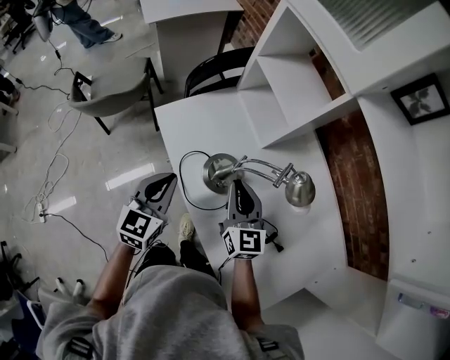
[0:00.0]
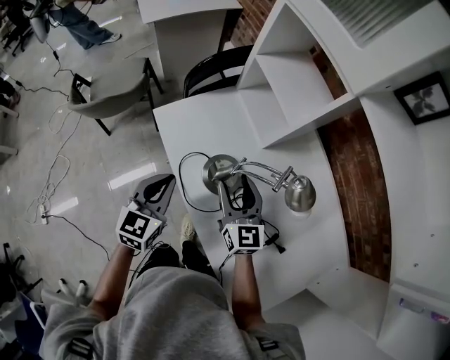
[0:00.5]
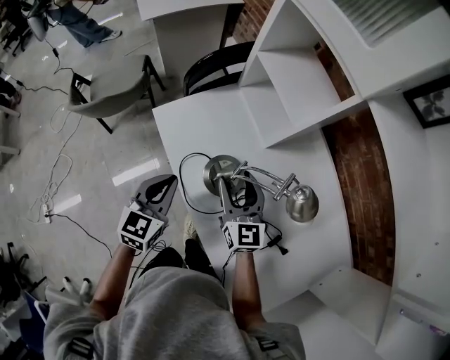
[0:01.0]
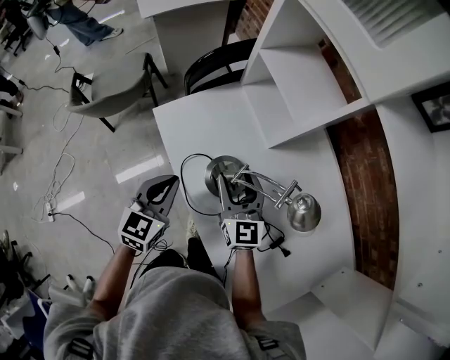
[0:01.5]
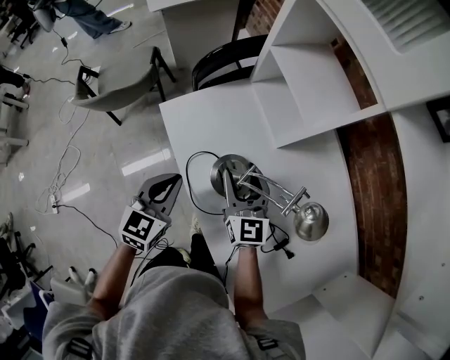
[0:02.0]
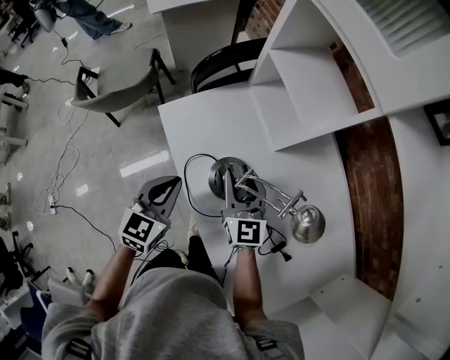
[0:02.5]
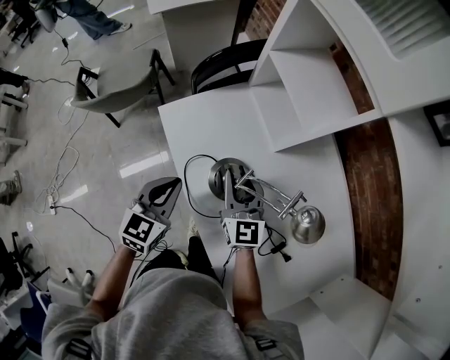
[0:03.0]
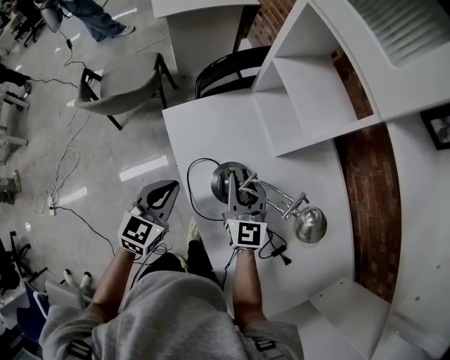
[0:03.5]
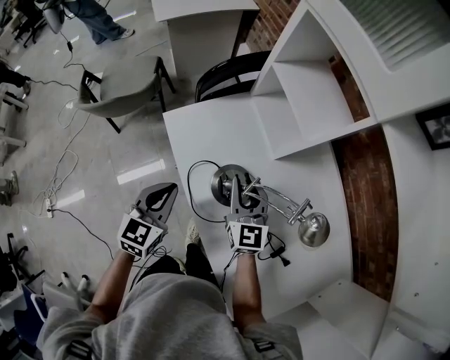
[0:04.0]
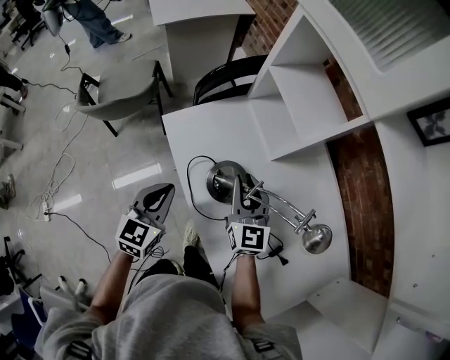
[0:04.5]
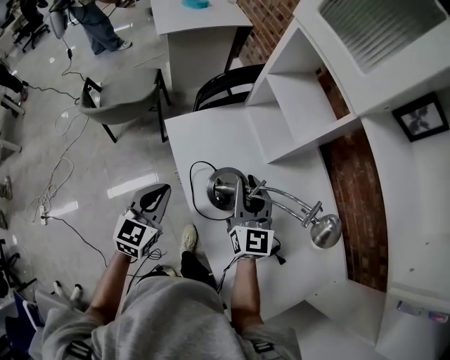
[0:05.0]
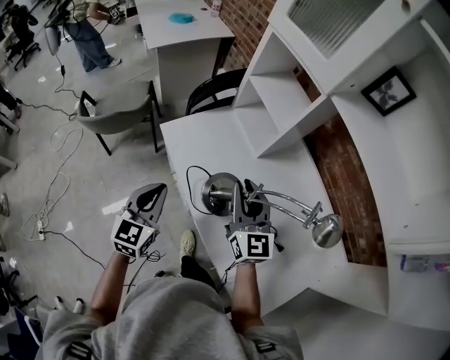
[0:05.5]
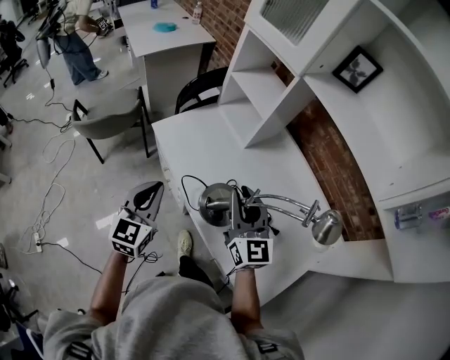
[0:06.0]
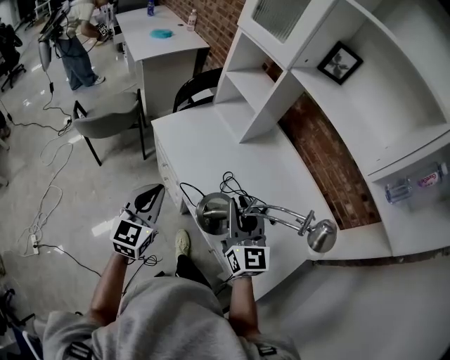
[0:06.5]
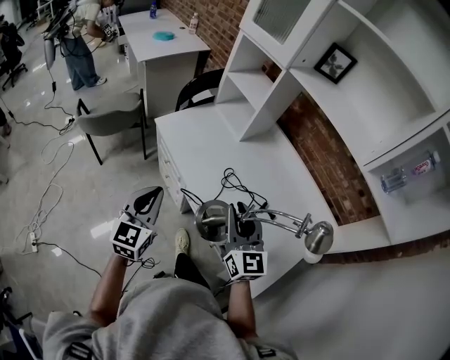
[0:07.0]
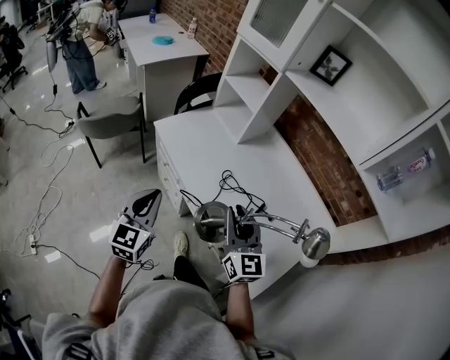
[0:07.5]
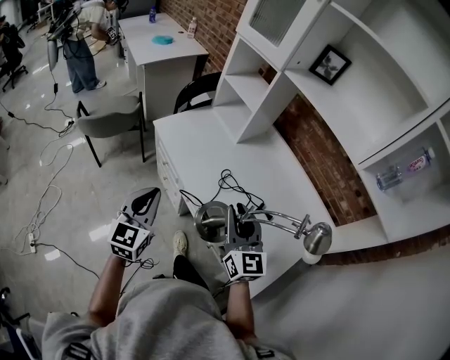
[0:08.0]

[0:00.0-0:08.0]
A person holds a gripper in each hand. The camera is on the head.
0:00.0 to 0:02.0: The right gripper is displaced forward by some 5 cm, and opens its fingers.
0:02.0 to 0:04.0: The right gripper closes its fingers.
0:04.0 to 0:06.0: The two grippers go roughly 20 cm backward and upward.
0:06.0 to 0:08.0: The two grippers go approximately 15 cm backward.

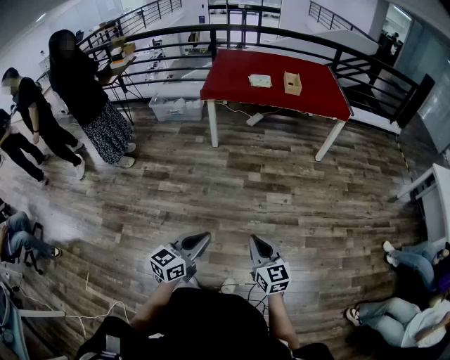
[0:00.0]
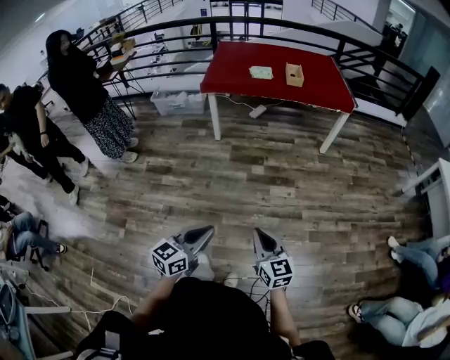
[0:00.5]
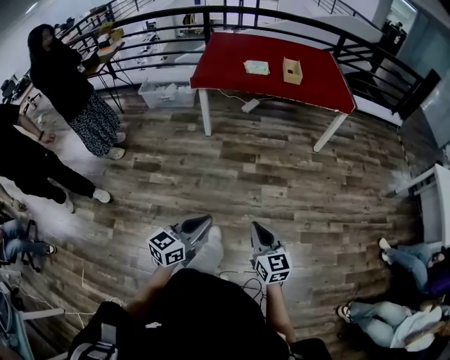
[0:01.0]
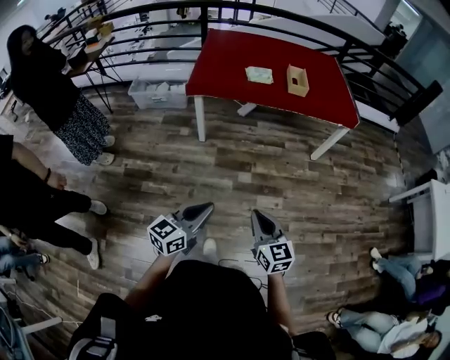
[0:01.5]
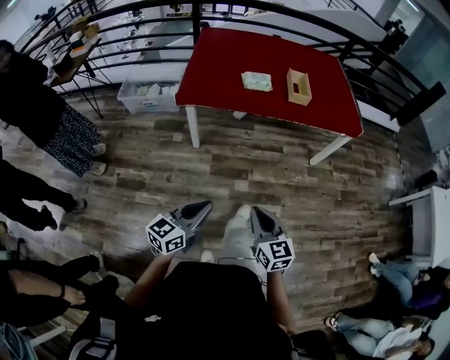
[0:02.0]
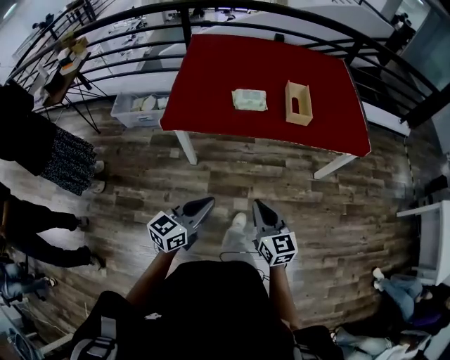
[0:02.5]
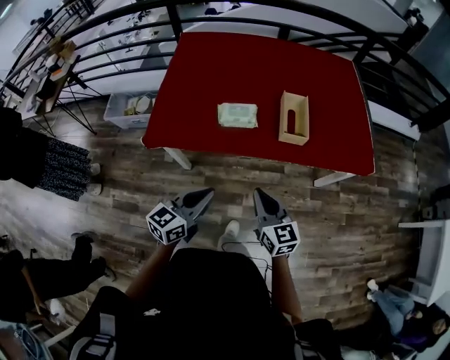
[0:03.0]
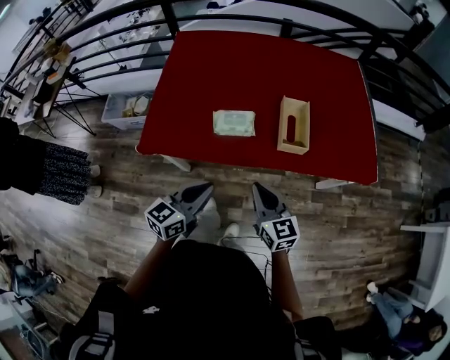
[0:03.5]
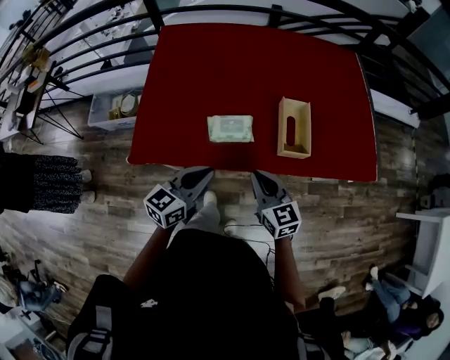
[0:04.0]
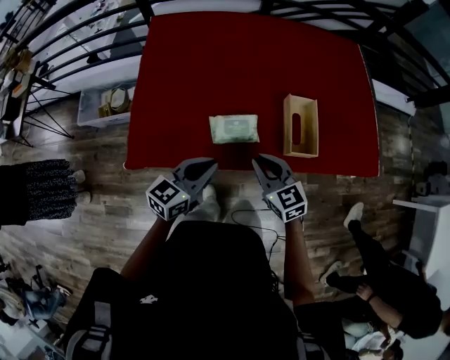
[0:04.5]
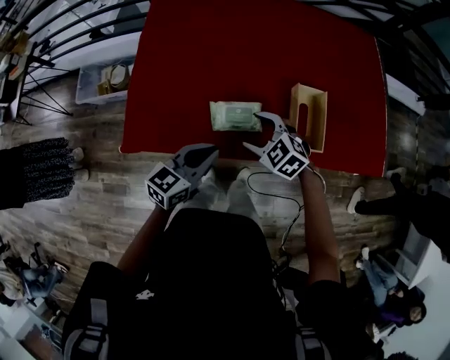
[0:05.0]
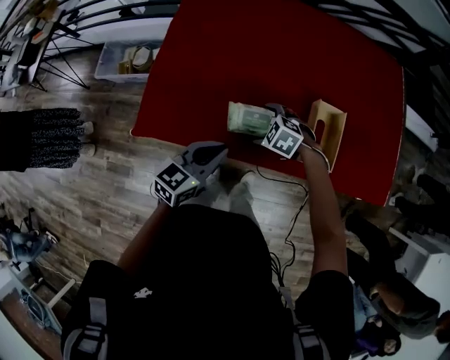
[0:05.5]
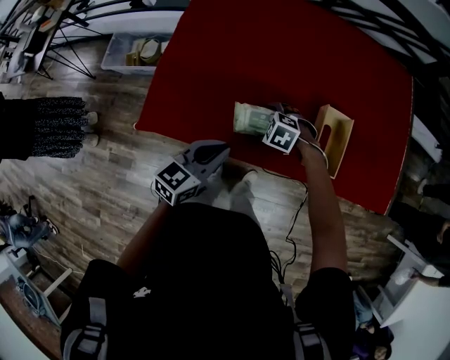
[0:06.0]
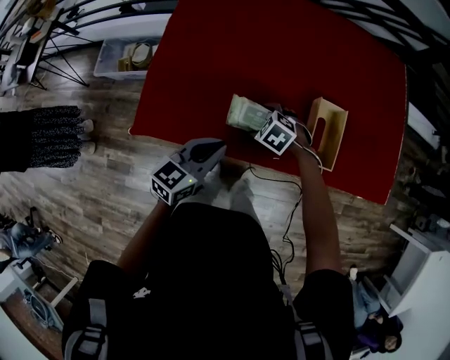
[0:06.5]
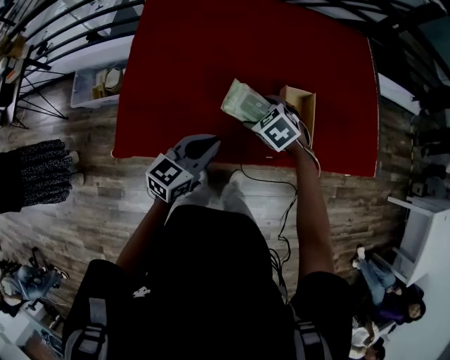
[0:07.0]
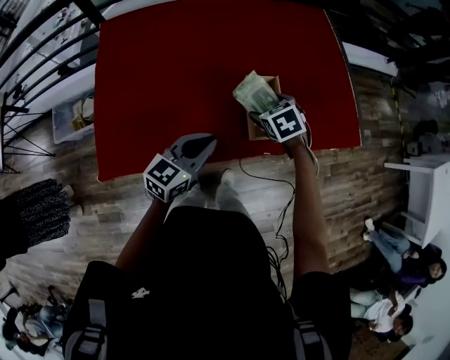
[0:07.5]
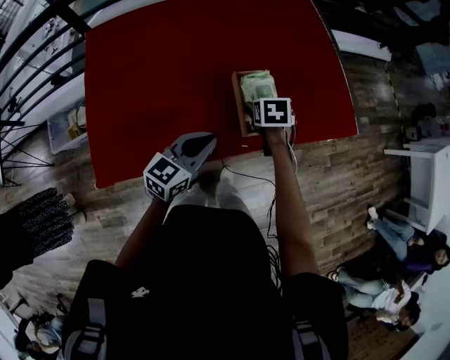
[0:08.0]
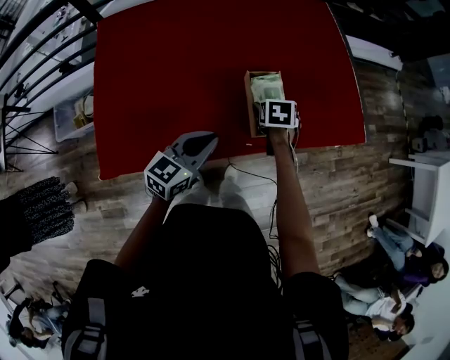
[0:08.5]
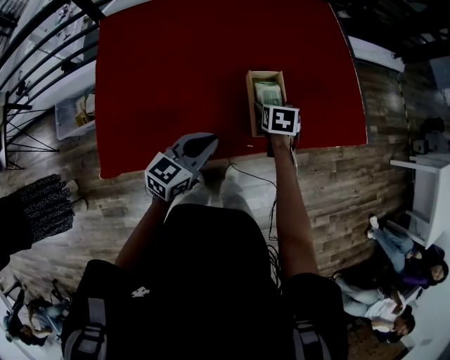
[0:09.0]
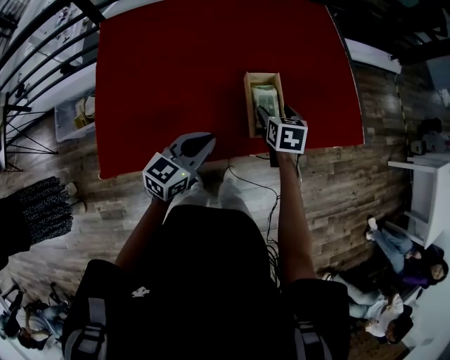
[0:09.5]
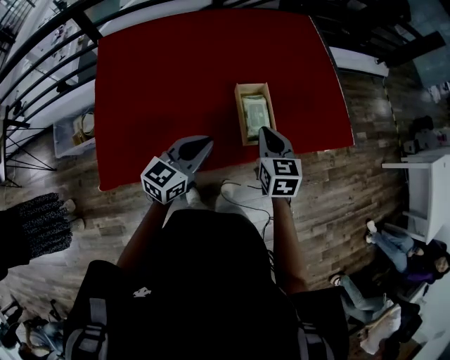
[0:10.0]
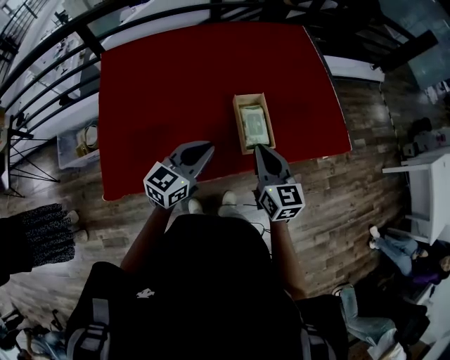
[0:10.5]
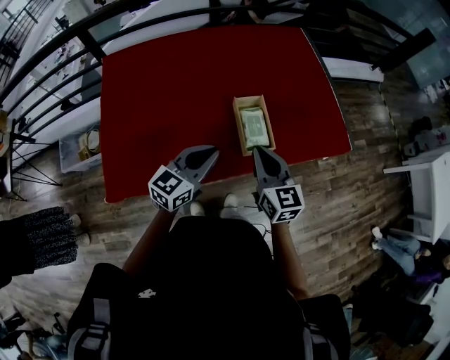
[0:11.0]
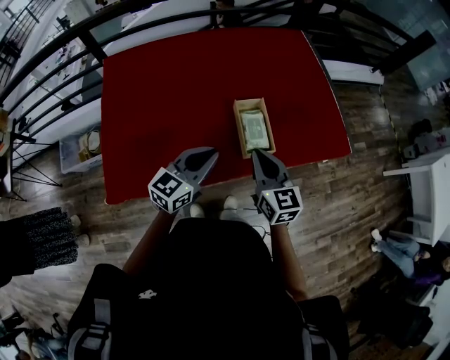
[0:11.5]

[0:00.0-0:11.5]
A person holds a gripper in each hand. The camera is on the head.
0:00.0 to 0:02.0: The pair of grippers is taken forward, roughly 50 cm.
0:02.0 to 0:04.0: Both grippers are carried forward, approximately 60 cm.
0:04.0 to 0:06.0: The left gripper ends up some 10 cm from where it was. Meanwhile the right gripper moves some 25 cm, tips its fingers downward by approximately 50 degrees, and opens up.
0:06.0 to 0:07.5: The right gripper moves some 25 cm, and rolls clockwise, seen from behind, by about 60 degrees; the left gripper shifts by some 15 cm, and rotates roughly 20 degrees.
0:07.5 to 0:09.5: The right gripper turns by roughly 30 degrees.
0:09.5 to 0:11.5: The left gripper moves upward, roughly 5 cm, while the right gripper moves upward and backward, some 20 cm, points its fingers approximately 30 degrees further upward, and closes its fingers.

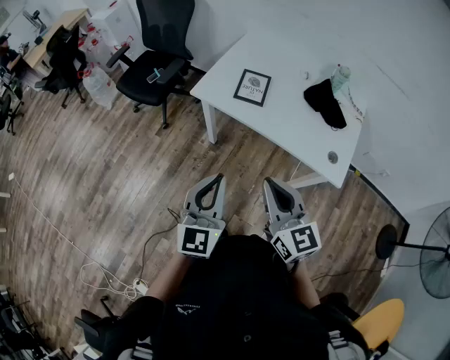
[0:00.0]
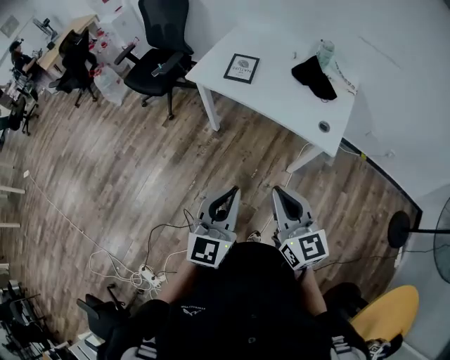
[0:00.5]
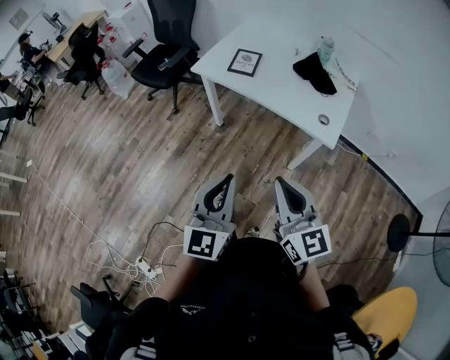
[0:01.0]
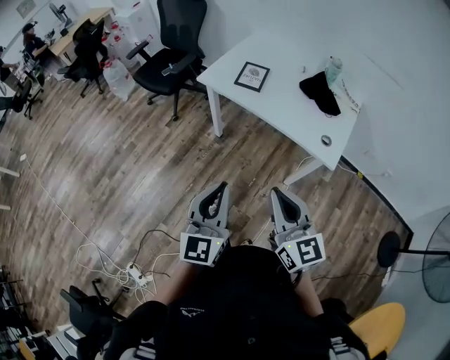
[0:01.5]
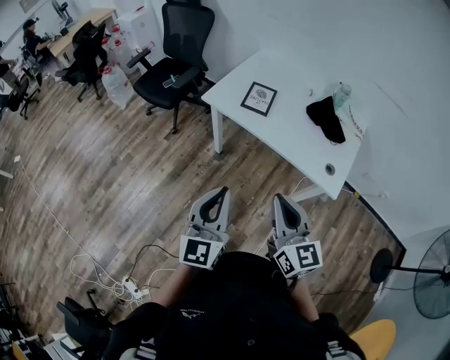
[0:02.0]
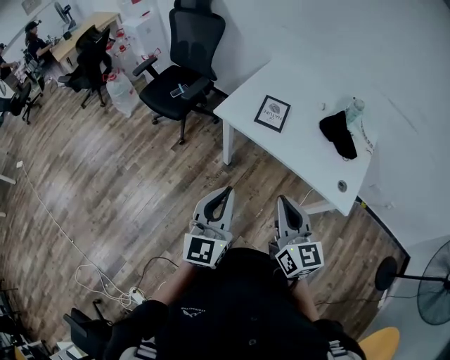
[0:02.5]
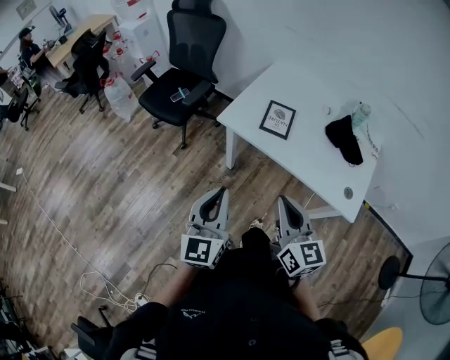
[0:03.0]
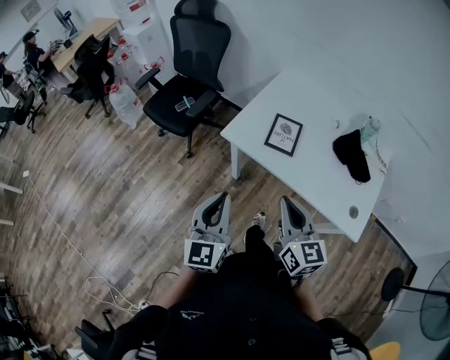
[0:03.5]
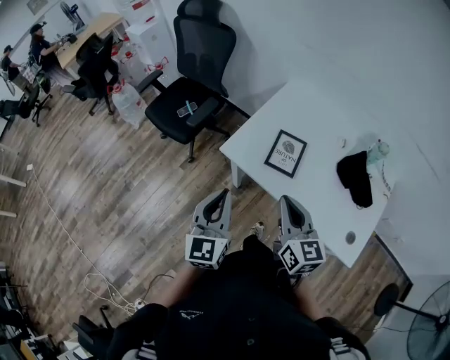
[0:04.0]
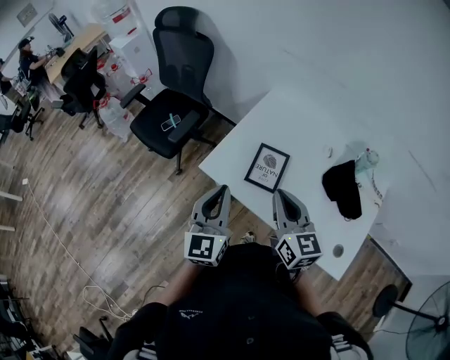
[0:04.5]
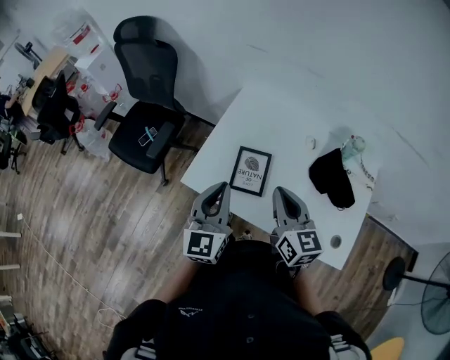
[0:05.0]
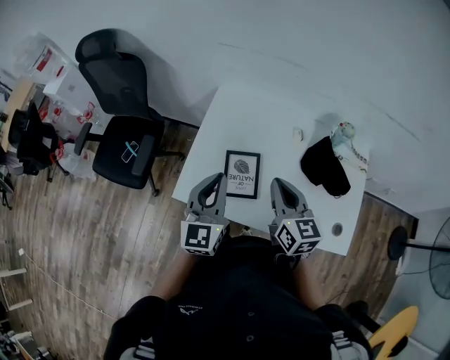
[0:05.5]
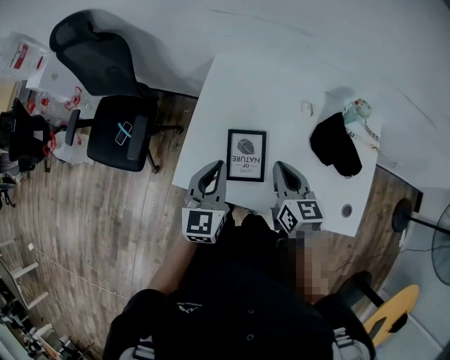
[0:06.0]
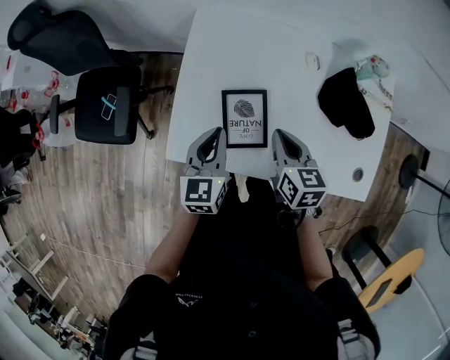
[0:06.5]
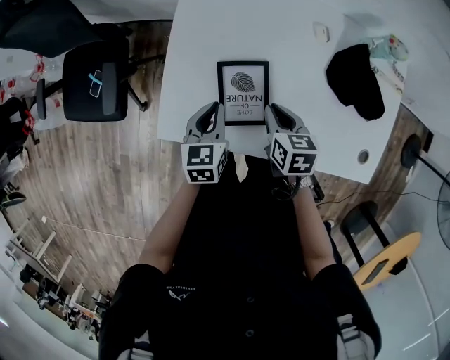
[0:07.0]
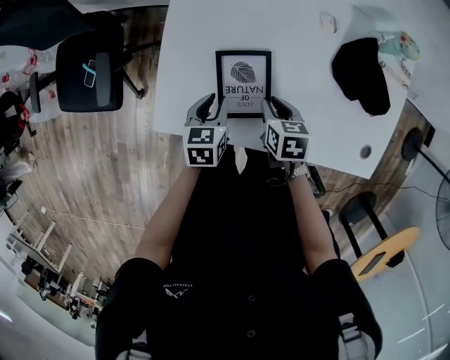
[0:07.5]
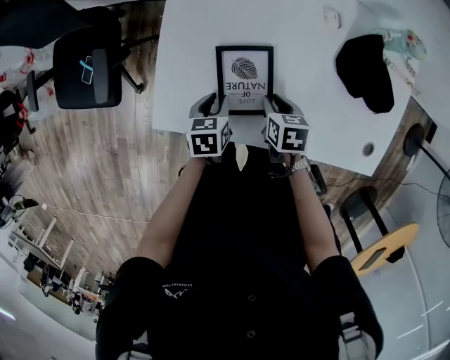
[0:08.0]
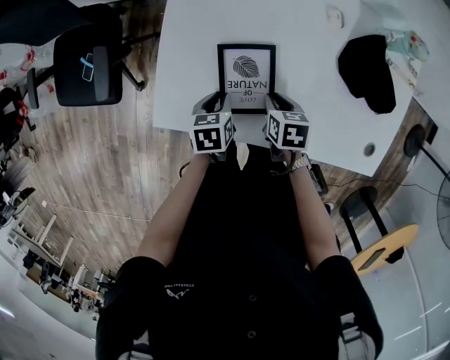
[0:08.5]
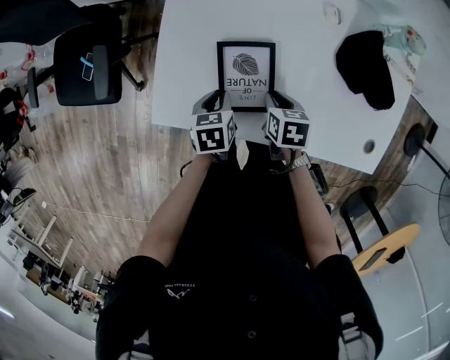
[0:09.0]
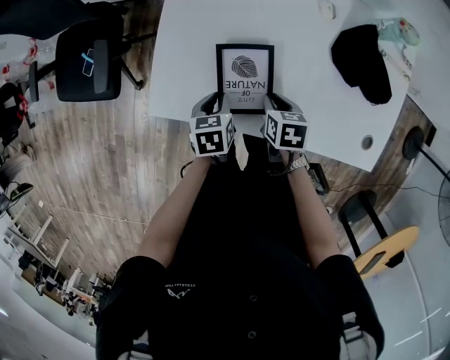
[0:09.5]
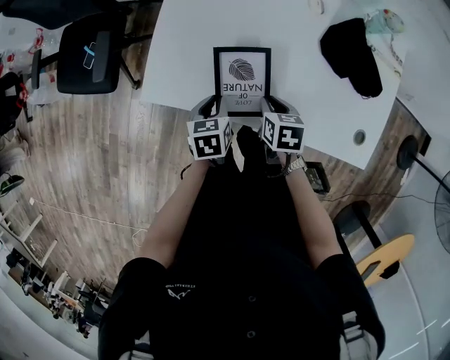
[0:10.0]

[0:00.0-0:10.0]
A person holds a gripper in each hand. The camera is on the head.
0:00.0 to 0:02.0: Both grippers travel together backward, about 10 cm.
0:02.0 to 0:04.0: The grippers both shift forward by about 35 cm.
0:04.0 to 0:06.0: The right gripper heads forward, to the right and downward, covering about 30 cm, and rotates some 30 degrees, while the left gripper shifts approximately 30 cm forward and to the right, and turns by some 30 degrees.
0:06.0 to 0:08.0: Both grippers travel together downward, some 30 cm. The left gripper tips its fingers downward by approximately 40 degrees, and opens. Meanwhile the right gripper tips its fingers downward by about 40 degrees, and opens its fingers.
0:08.0 to 0:10.0: Both grippers travel together backward, roughly 10 cm.
